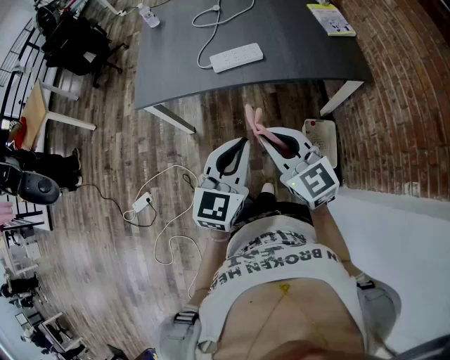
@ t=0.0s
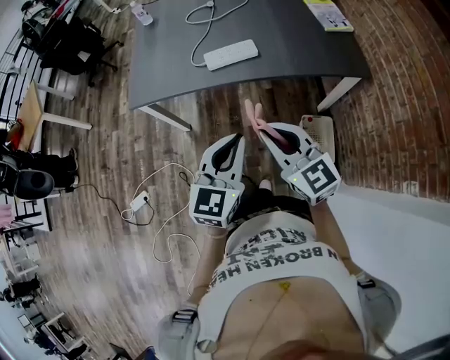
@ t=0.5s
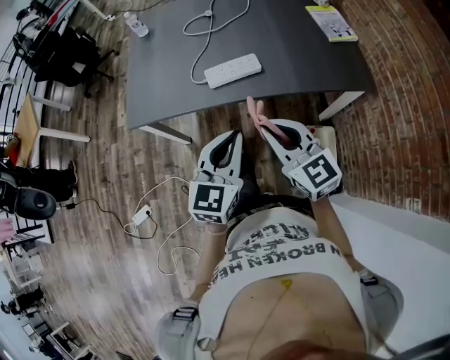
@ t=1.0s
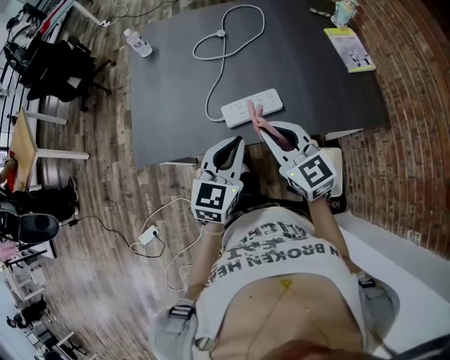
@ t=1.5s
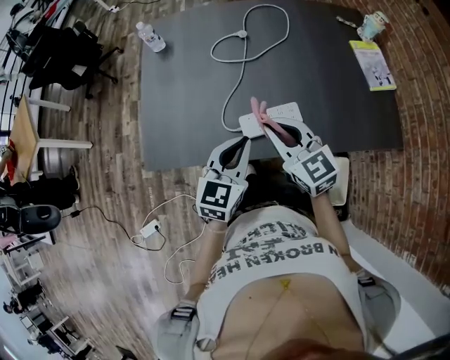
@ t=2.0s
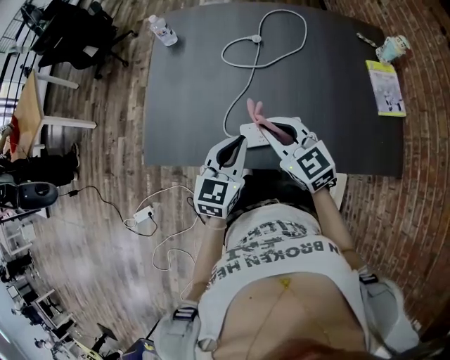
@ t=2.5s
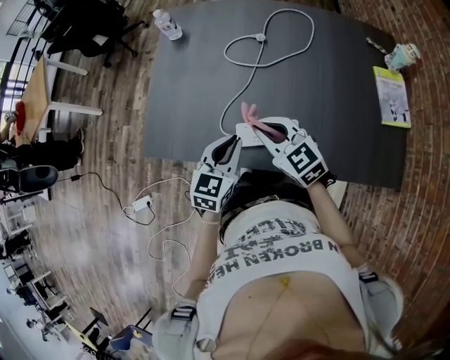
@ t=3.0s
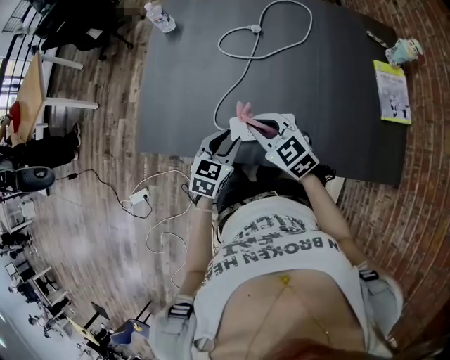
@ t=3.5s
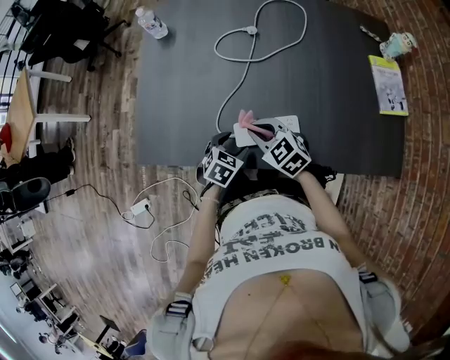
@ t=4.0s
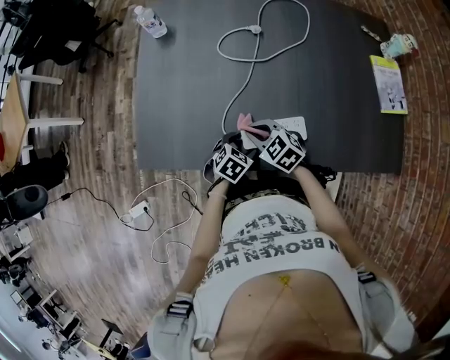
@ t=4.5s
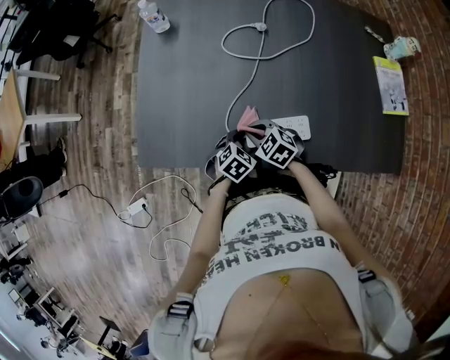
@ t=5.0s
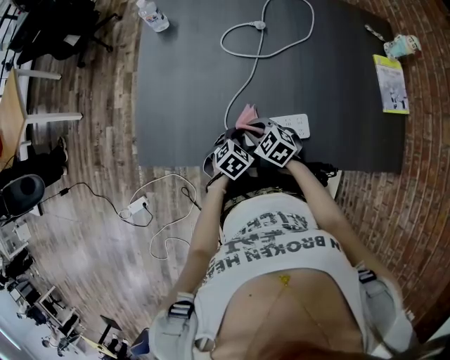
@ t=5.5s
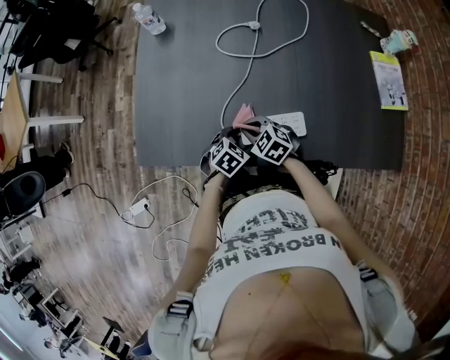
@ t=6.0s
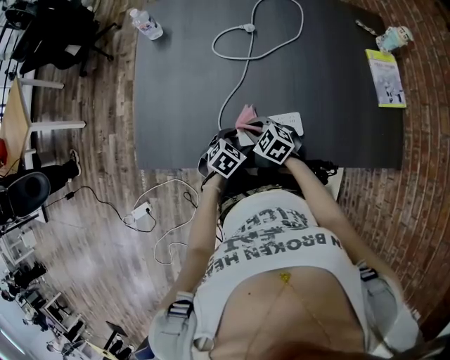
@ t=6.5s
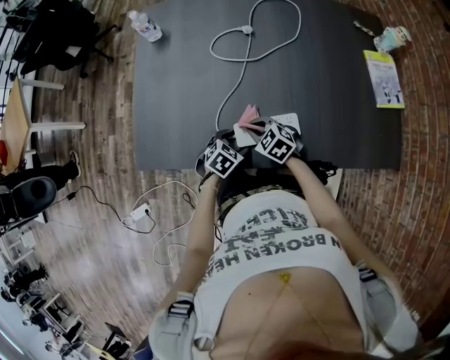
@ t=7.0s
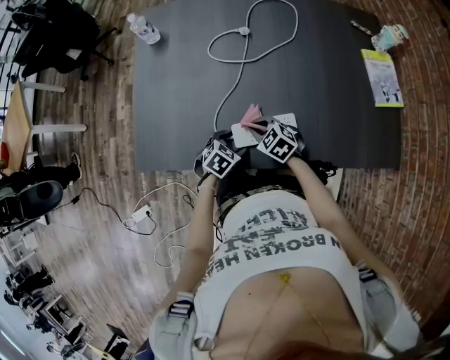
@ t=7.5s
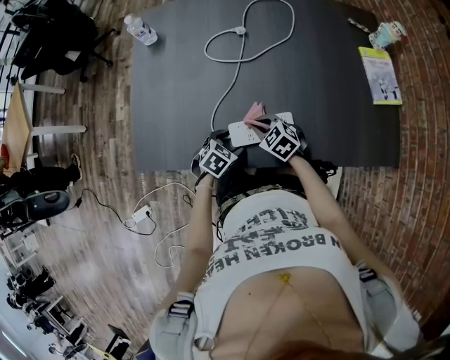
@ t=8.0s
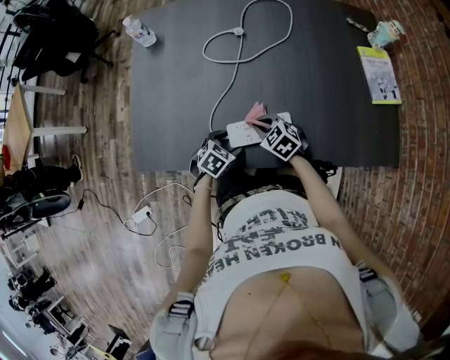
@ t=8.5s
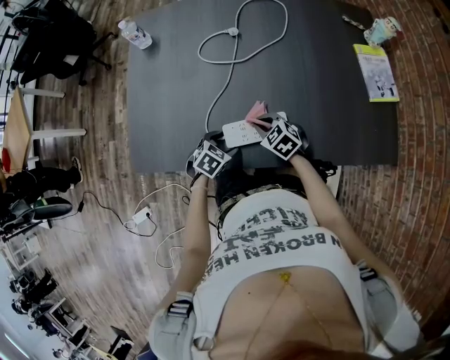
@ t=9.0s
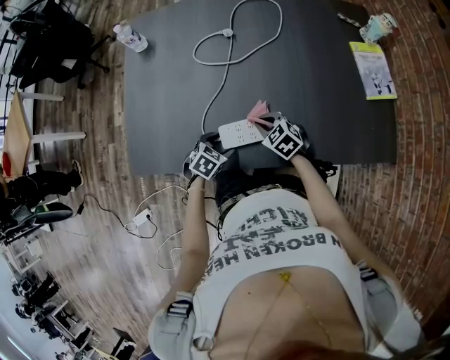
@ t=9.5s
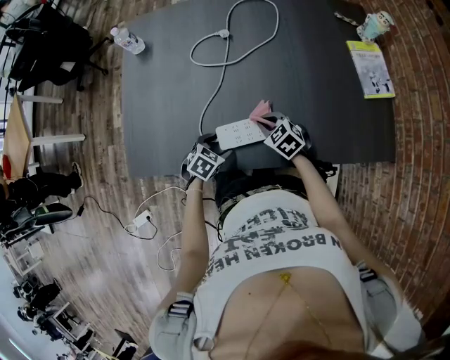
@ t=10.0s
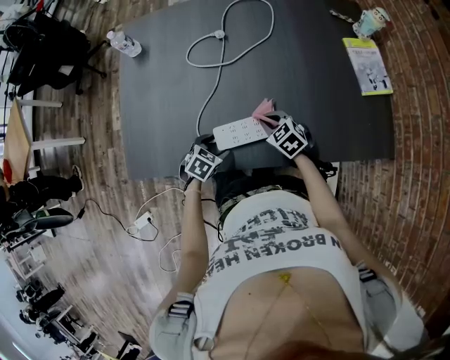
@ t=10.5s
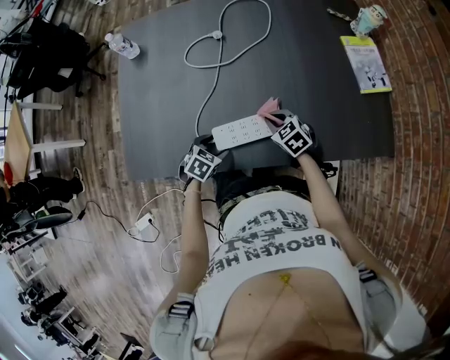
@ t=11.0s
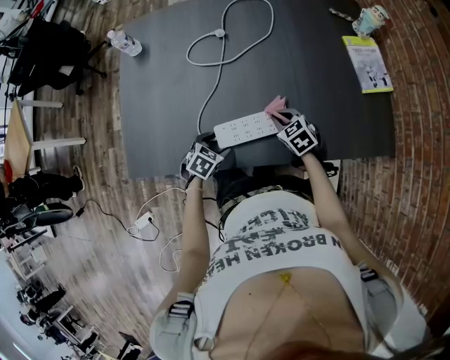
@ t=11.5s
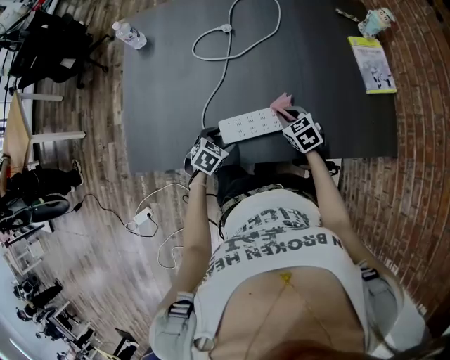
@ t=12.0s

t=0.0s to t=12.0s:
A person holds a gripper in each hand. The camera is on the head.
t=0.0s to t=2.0s: The pair of grippers is taken forward, some 40 cm.
t=2.0s to t=4.0s: The right gripper is displaced downward and forward by roughly 15 cm, and swivels approximately 30 degrees; the left gripper heads downward, covering approximately 20 cm, points its fingers roughly 40 degrees further downward, and opens its fingers.
t=4.0s to t=6.0s: The right gripper heads downward, covering about 10 cm.
t=6.0s to t=8.0s: The right gripper moves to the right, some 10 cm.
t=8.0s to t=10.0s: The right gripper heads to the right, covering roughly 5 cm.
t=10.0s to t=12.0s: The right gripper shifts about 5 cm to the right.

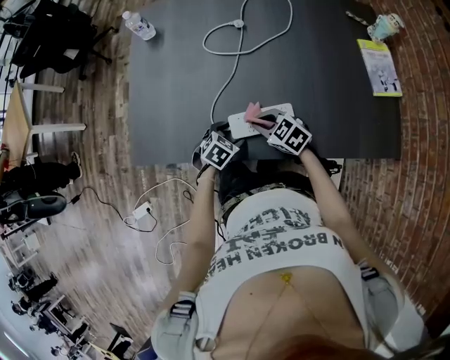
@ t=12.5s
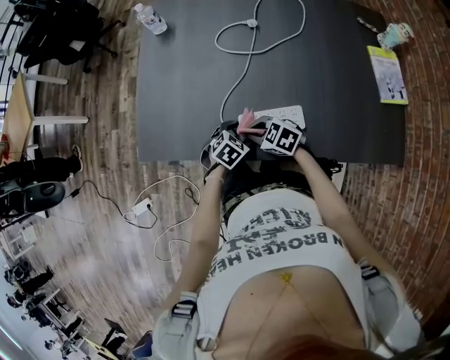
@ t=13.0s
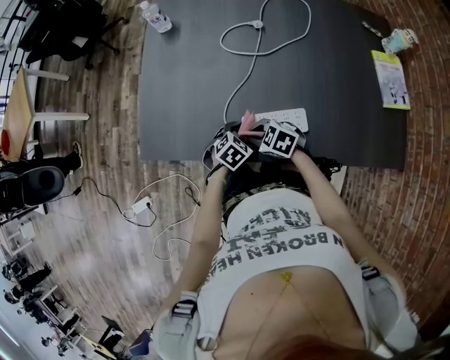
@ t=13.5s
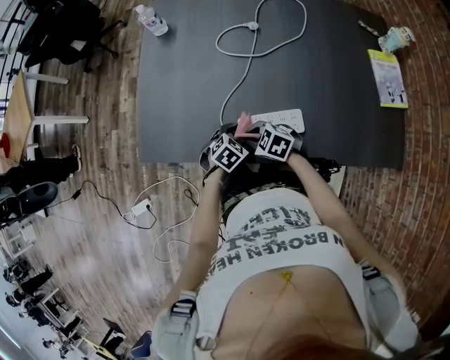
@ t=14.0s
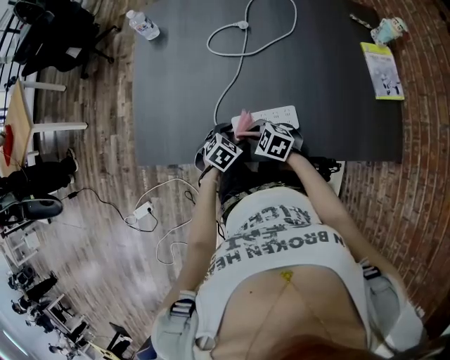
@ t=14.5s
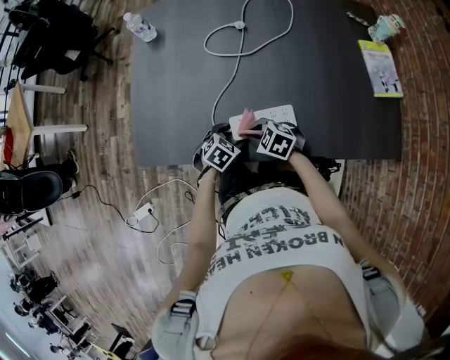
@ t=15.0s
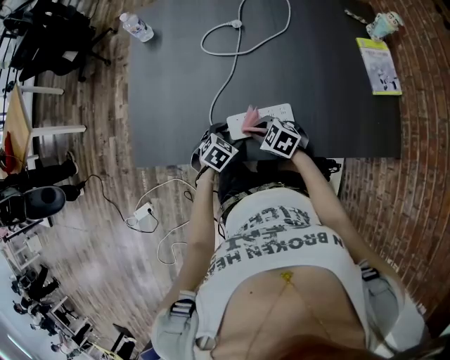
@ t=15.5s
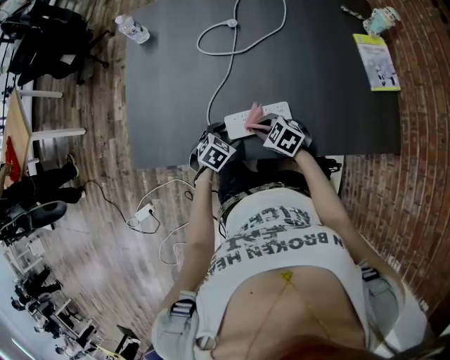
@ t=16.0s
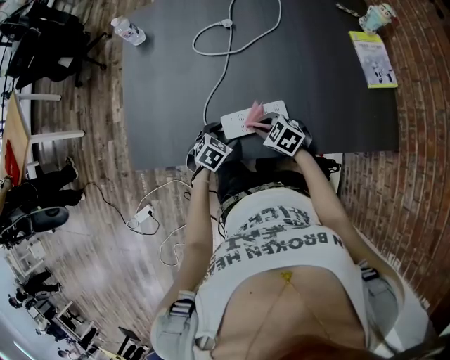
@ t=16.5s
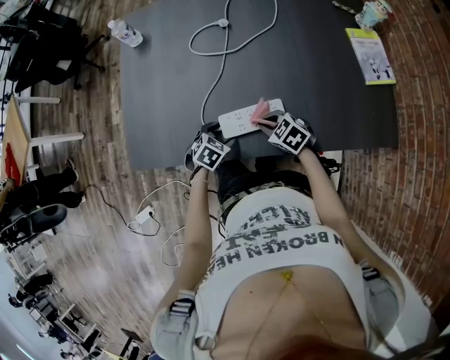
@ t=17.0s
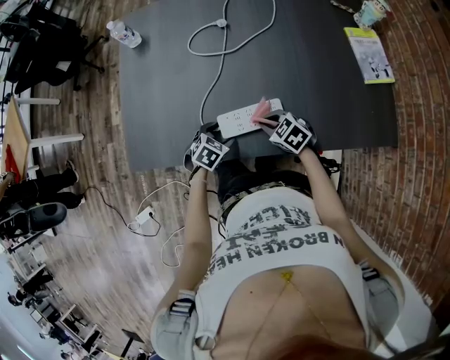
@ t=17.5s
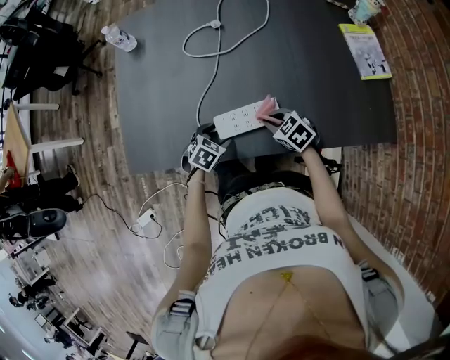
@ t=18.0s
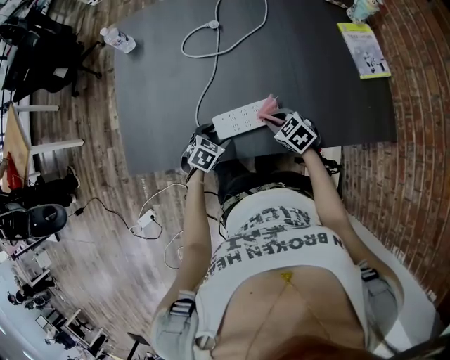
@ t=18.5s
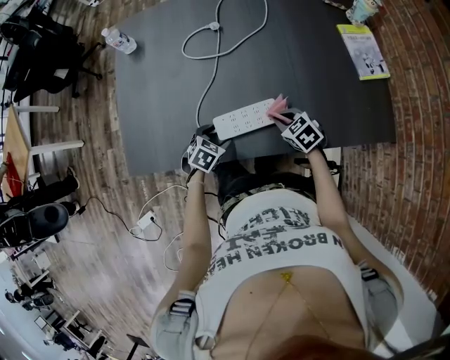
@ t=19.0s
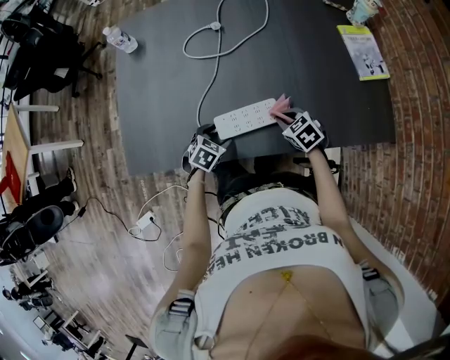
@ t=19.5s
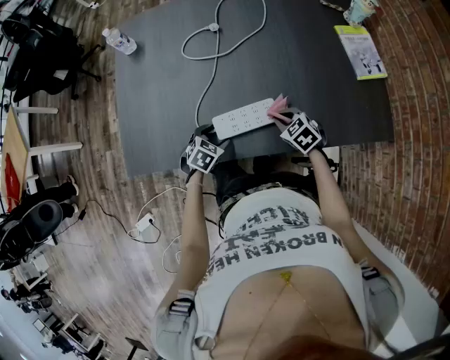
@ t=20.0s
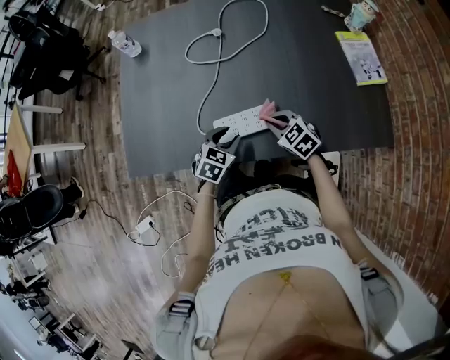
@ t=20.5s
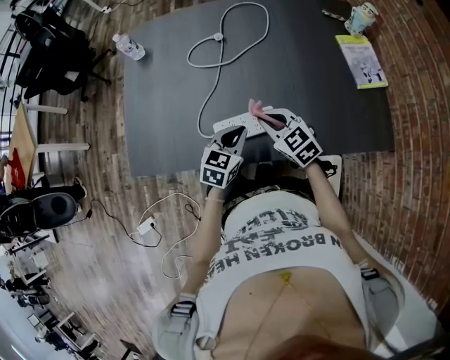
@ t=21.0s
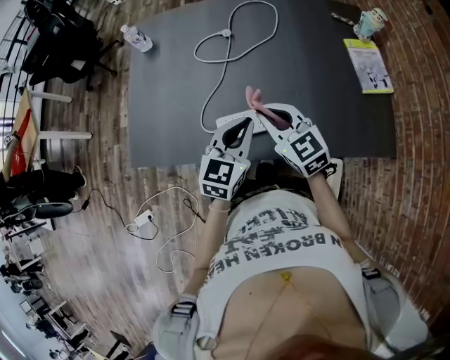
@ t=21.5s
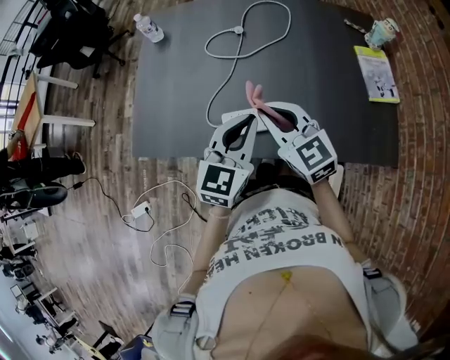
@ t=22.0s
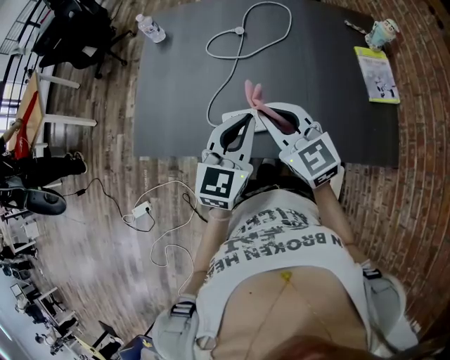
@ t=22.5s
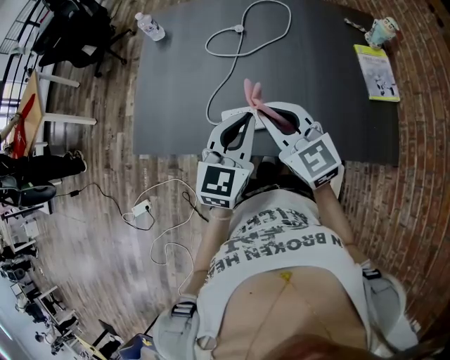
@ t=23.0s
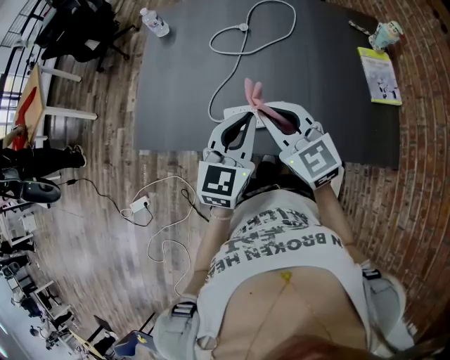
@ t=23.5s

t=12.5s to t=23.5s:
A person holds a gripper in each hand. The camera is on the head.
t=12.5s to t=14.5s: The right gripper ends up about 5 cm from where it was.
t=14.5s to t=16.0s: The right gripper moves approximately 5 cm.
t=16.0s to t=18.0s: The right gripper shifts by some 10 cm.
t=18.0s to t=20.0s: The grippers move only a little.
t=20.0s to t=21.5s: The right gripper moves upward, roughly 20 cm, and tilts its fingers approximately 30 degrees upward. The left gripper goes roughly 25 cm upward and to the right, points its fingers about 40 degrees further upward, and closes up.
t=21.5s to t=23.5s: The two grippers go some 5 cm upward.

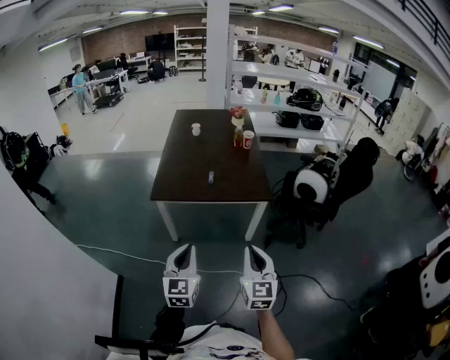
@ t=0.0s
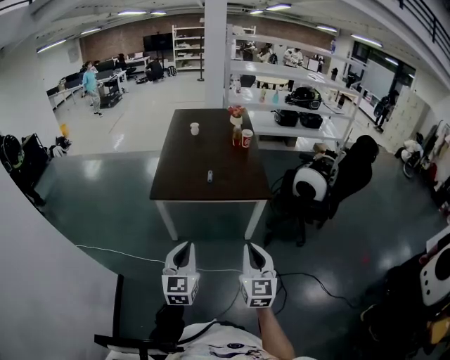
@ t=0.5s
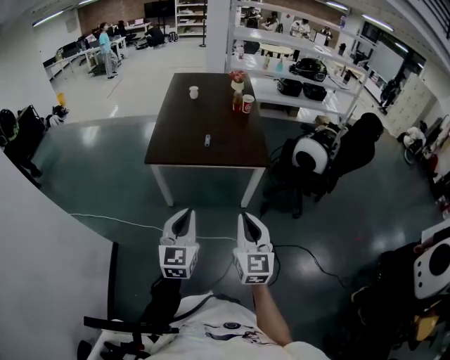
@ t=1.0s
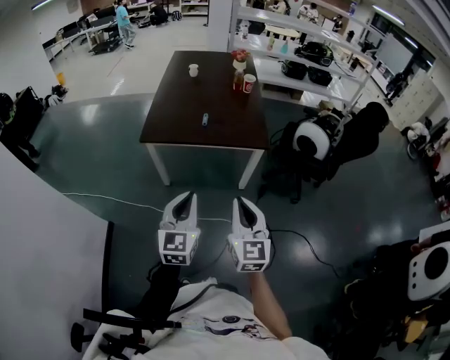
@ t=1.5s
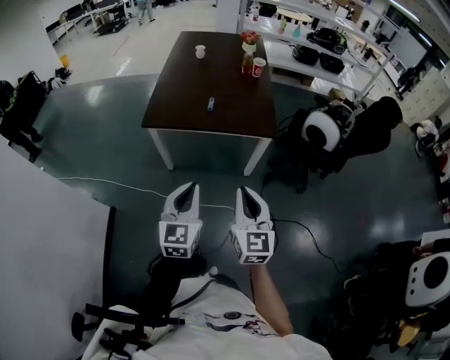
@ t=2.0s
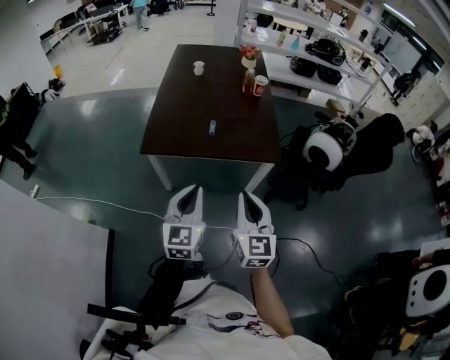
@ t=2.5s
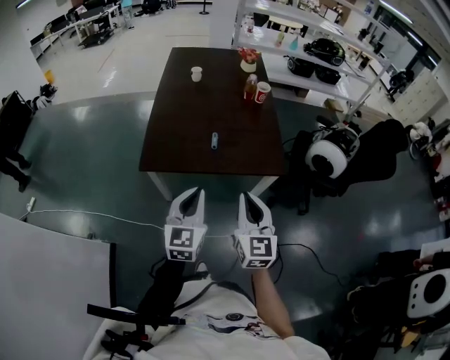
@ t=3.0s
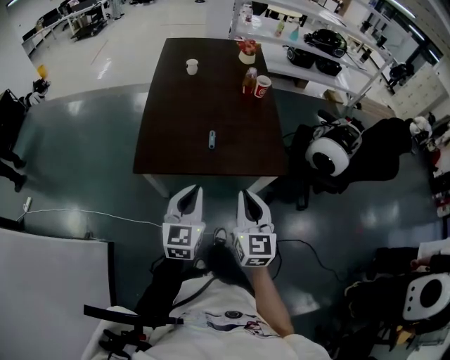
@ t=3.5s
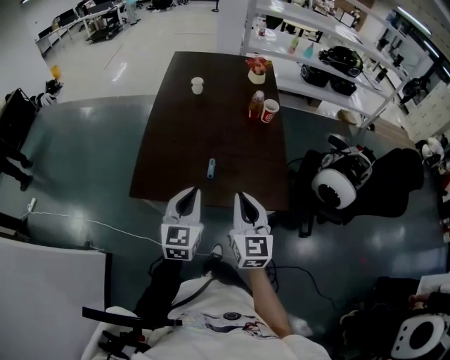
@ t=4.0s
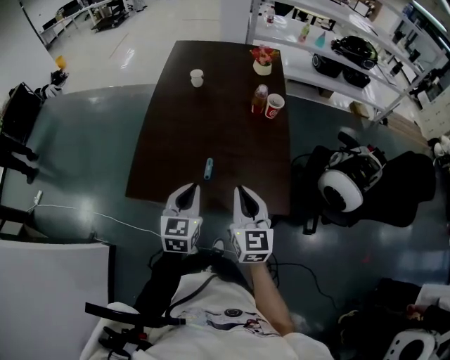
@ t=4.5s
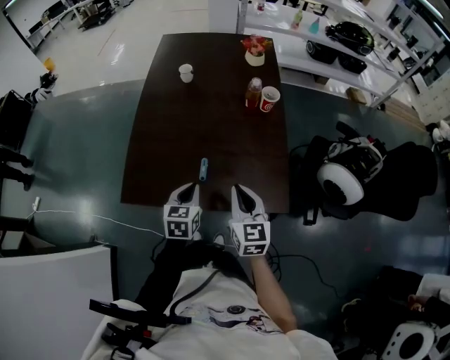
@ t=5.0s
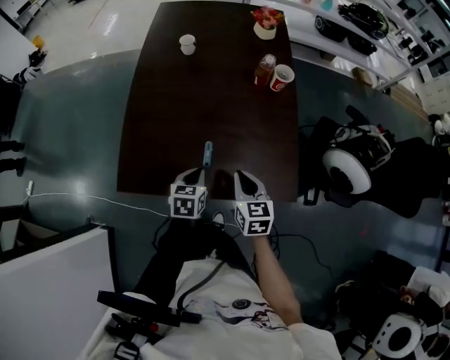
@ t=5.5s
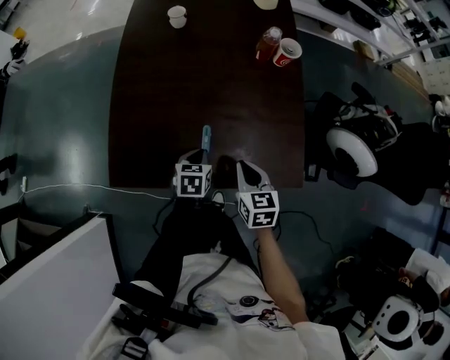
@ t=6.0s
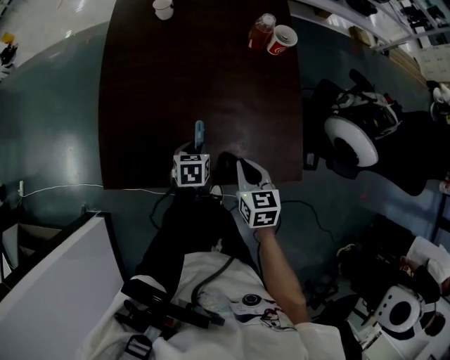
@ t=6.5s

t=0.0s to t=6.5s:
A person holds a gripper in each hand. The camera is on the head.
t=0.0s to t=2.0s: The left gripper goes roughly 5 cm to the right.
t=2.0s to t=4.5s: Both grippers are carried forward, some 40 cm.
t=4.5s to t=6.5s: The two grippers go roughly 20 cm downward. The left gripper points its fingers approximately 40 degrees further downward, and opens its fingers. Meanwhile the right gripper tips its fingers downward by approximately 30 degrees.
